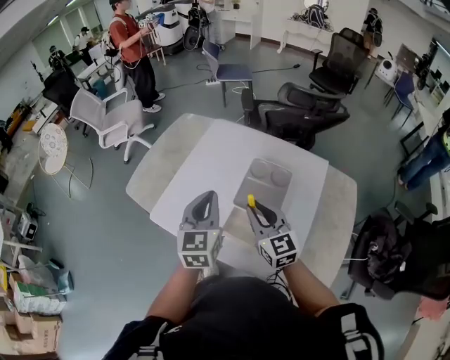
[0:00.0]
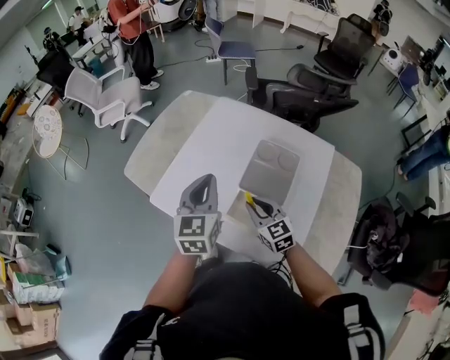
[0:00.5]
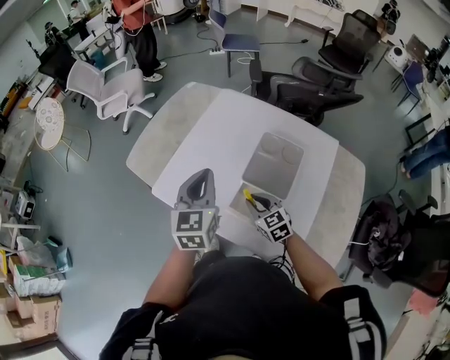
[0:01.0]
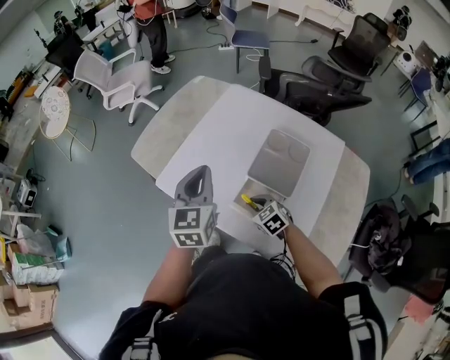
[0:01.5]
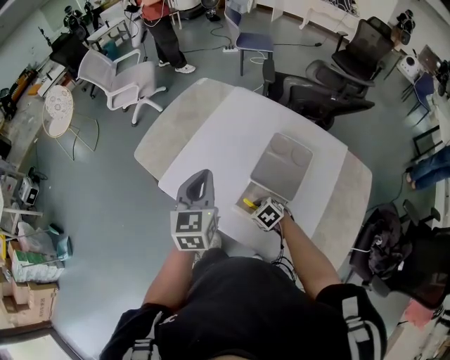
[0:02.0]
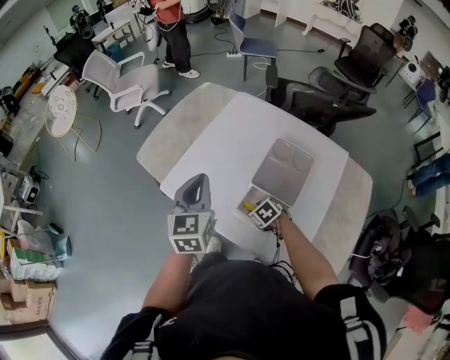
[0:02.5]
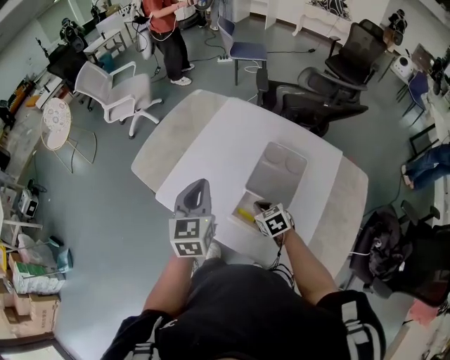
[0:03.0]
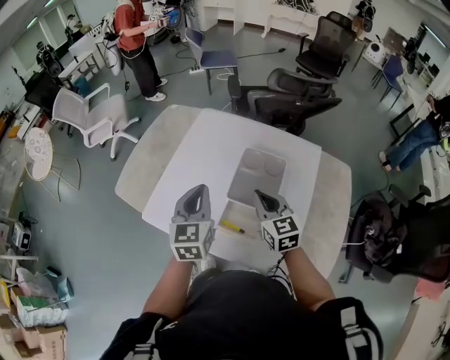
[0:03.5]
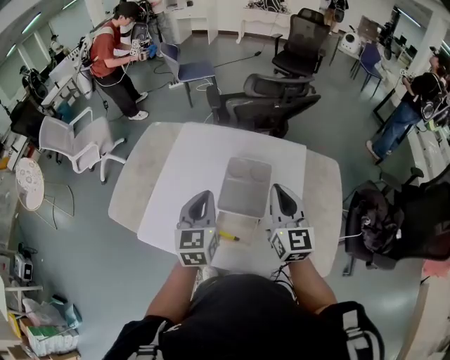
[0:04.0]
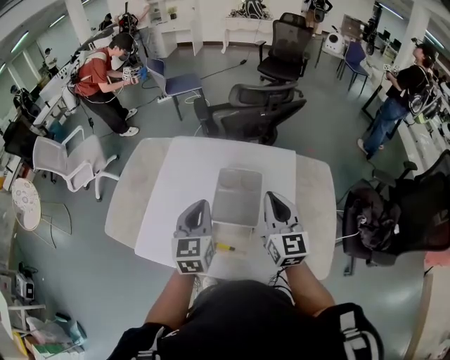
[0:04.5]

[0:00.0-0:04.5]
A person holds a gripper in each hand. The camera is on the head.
0:00.0 to 0:02.0: The right gripper moves downward, some 25 cm, and points its fingers some 50 degrees further downward, while the left gripper is displaced to the left by roughly 10 cm.
0:02.0 to 0:04.5: The left gripper ends up approximately 15 cm from where it was, and changes its angle by roughly 20 degrees, while the right gripper shifts some 30 cm upward, and tilts its fingers approximately 60 degrees upward.

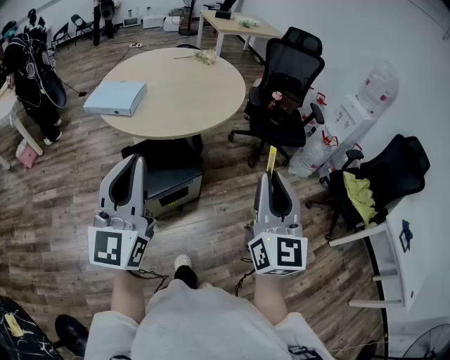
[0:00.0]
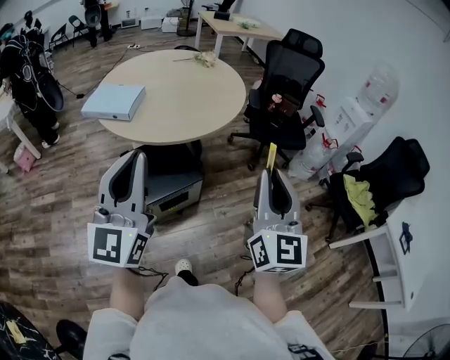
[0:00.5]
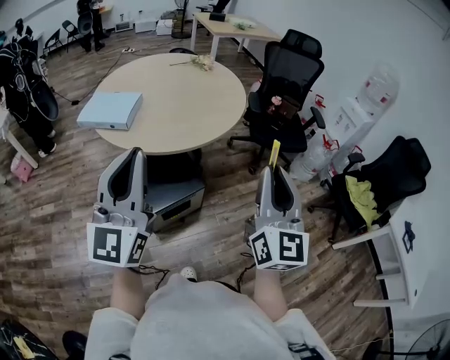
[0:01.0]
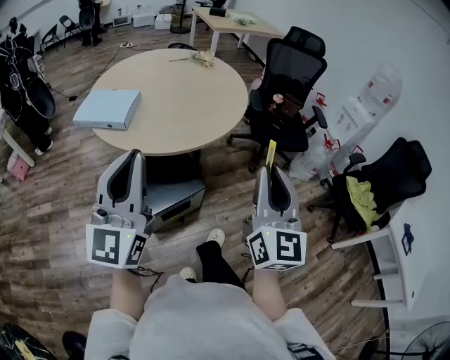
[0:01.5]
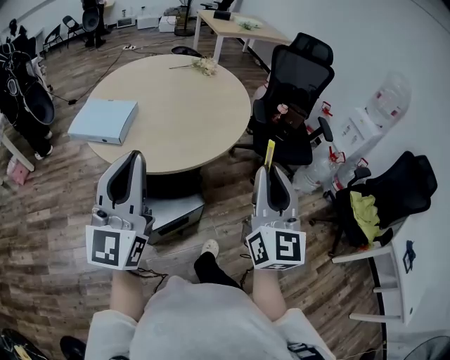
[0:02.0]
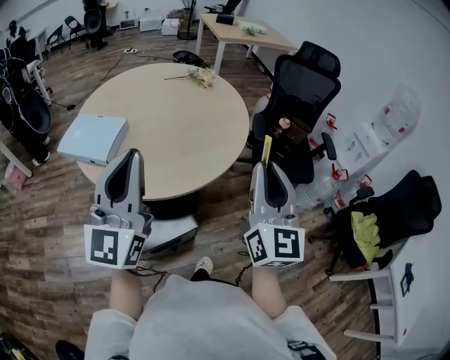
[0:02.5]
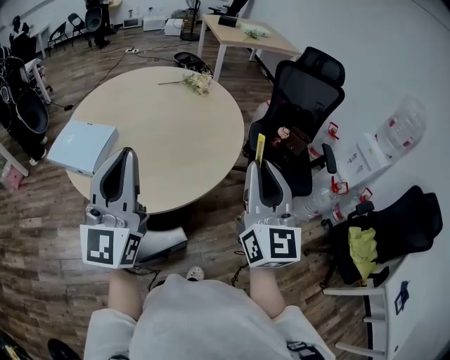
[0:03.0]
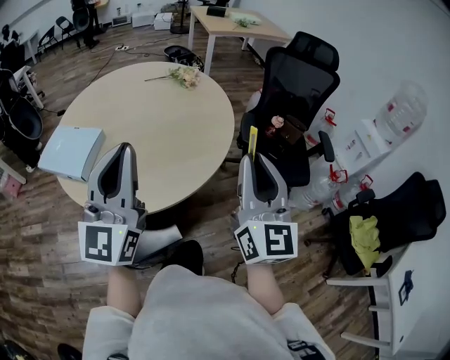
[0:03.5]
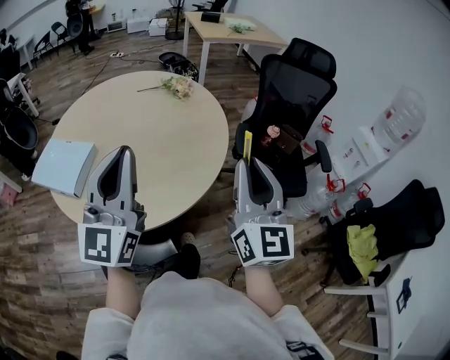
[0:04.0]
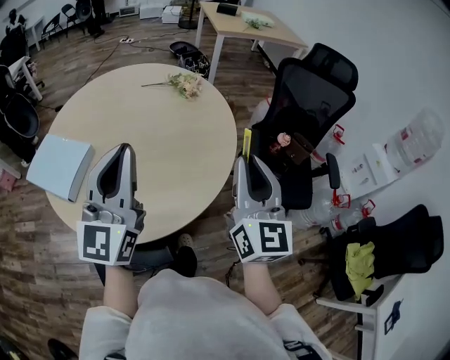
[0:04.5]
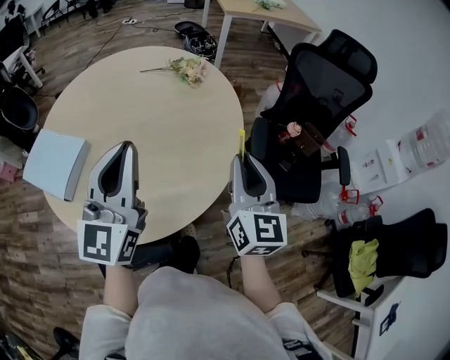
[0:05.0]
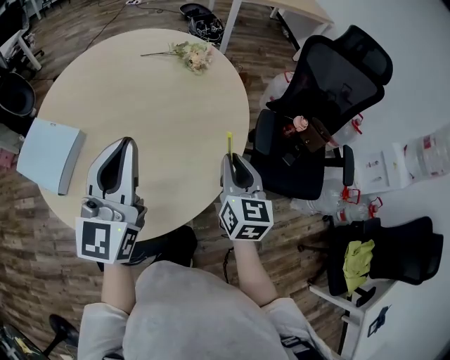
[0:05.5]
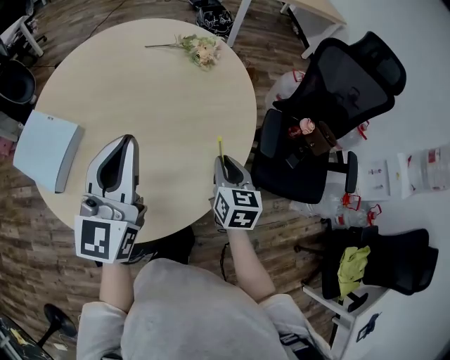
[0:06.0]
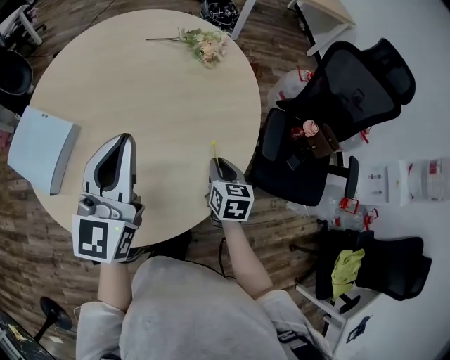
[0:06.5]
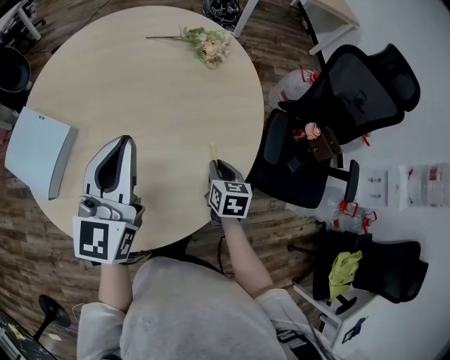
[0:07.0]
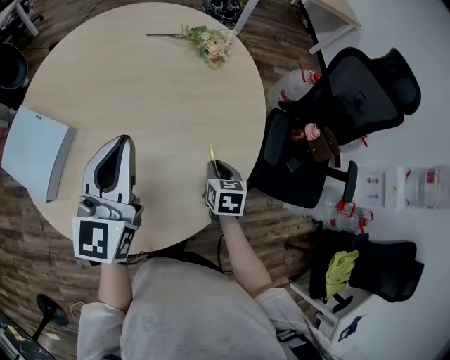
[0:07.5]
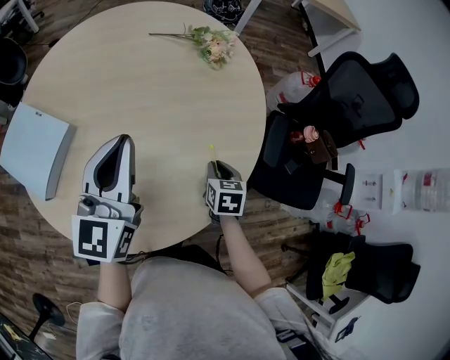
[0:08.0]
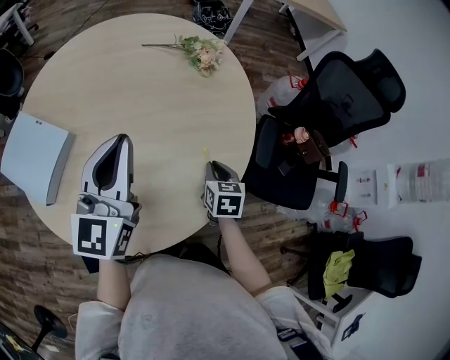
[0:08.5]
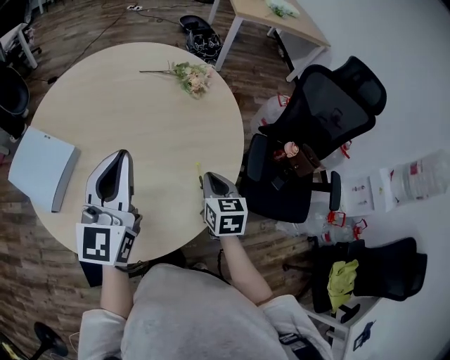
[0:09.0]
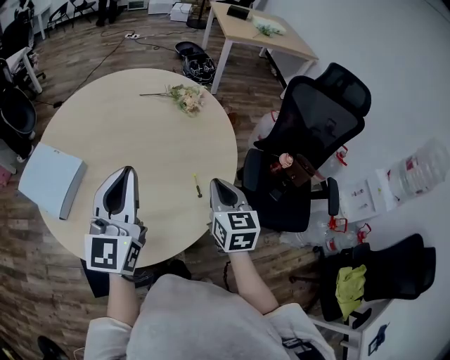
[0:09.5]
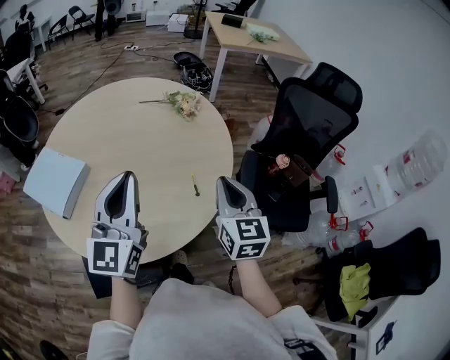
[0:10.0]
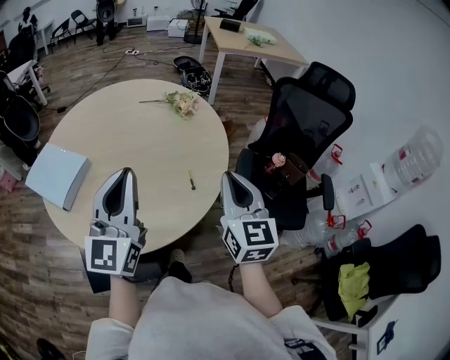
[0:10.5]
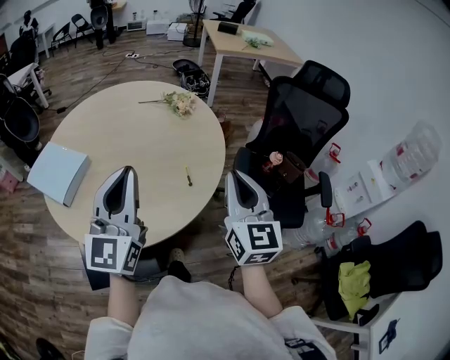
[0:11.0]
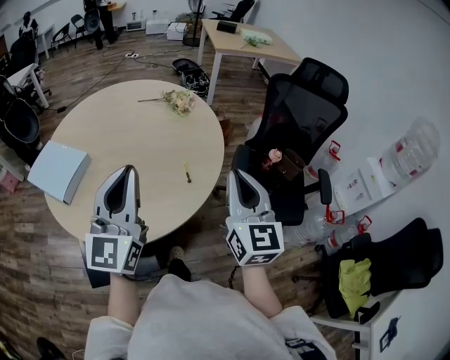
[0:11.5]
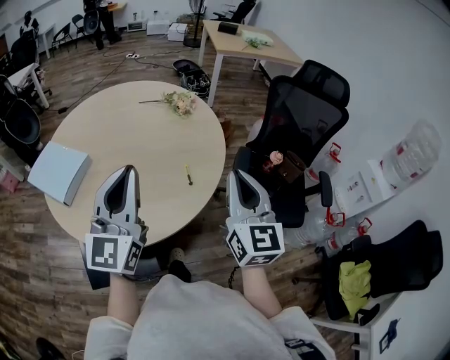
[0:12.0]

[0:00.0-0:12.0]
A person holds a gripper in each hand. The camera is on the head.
0:00.0 to 0:02.0: The grippers both shift forward by some 20 cm.
0:02.0 to 0:04.0: The right gripper goes about 30 cm forward. Meanwhile the left gripper is displaced forward and to the right by approximately 30 cm.
0:04.0 to 0:06.0: The right gripper shifts roughly 40 cm downward and forward, and angles its fingers downward, by about 40 degrees. The left gripper is displaced forward and downward by approximately 25 cm.
0:06.0 to 0:08.0: The left gripper is displaced forward and downward by approximately 10 cm. The right gripper shifts approximately 10 cm downward, and swivels about 20 degrees.
0:08.0 to 0:10.0: The right gripper moves upward, approximately 30 cm, and tips its fingers upward by approximately 40 degrees; the left gripper heads backward and upward, covering about 20 cm.
0:10.0 to 0:12.0: The left gripper goes about 10 cm backward; the right gripper is displaced backward, upward and to the right by about 15 cm.

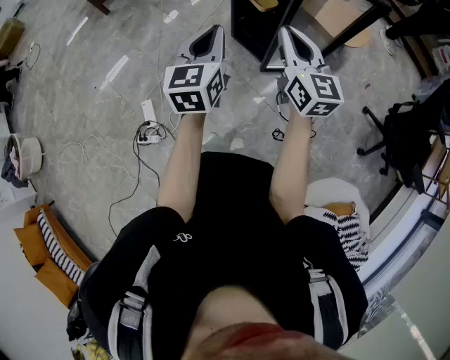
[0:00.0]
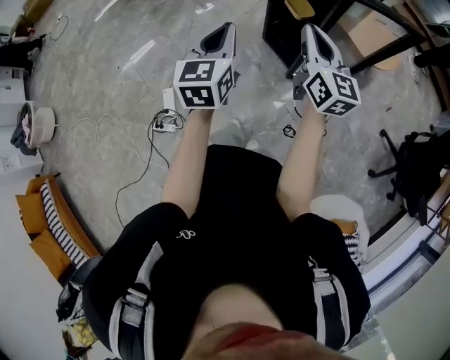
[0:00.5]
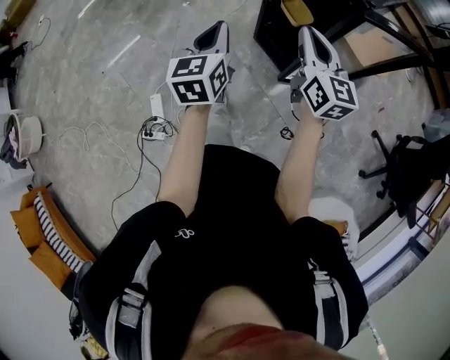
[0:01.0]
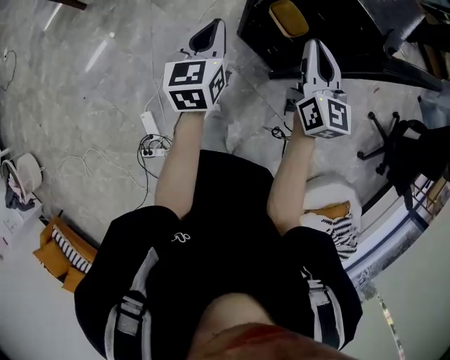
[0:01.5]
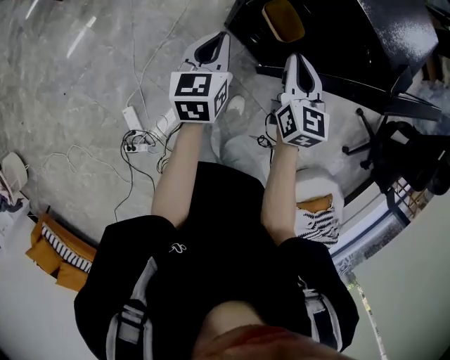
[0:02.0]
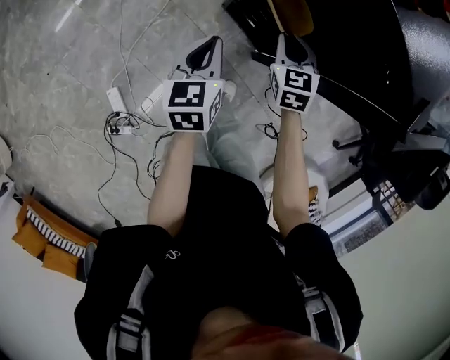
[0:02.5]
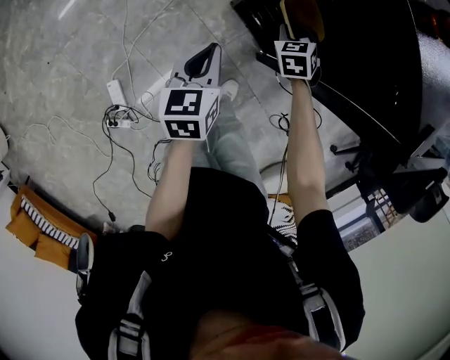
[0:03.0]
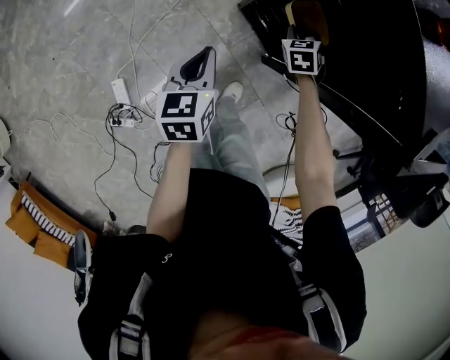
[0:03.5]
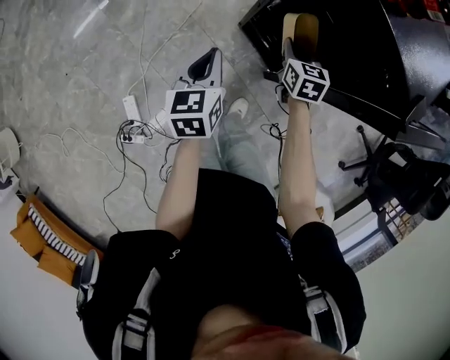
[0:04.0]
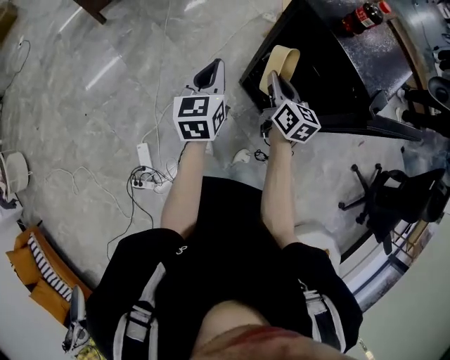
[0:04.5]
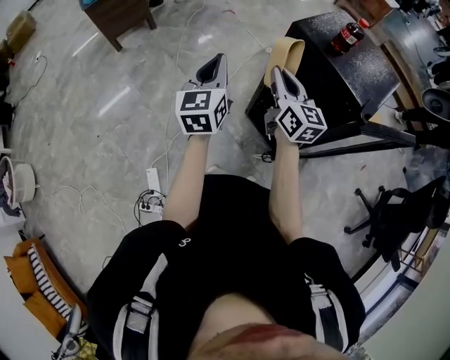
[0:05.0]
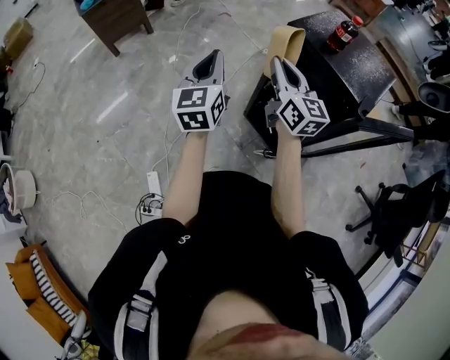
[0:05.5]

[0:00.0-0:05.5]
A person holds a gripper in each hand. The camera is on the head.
0:00.0 to 0:02.0: Both grippers move forward and downward, about 40 cm. The right gripper changes its angle by approximately 30 degrees; the left gripper rotates about 20 degrees.
0:02.0 to 0:03.5: The left gripper shifts approximately 10 cm downward, while the right gripper travels downward and forward by approximately 30 cm, and tilts its fingers roughly 40 degrees downward.
0:03.5 to 0:05.5: The two grippers go approximately 40 cm upward. The left gripper points its fingers some 40 degrees further upward, while the right gripper tilts its fingers about 60 degrees upward.

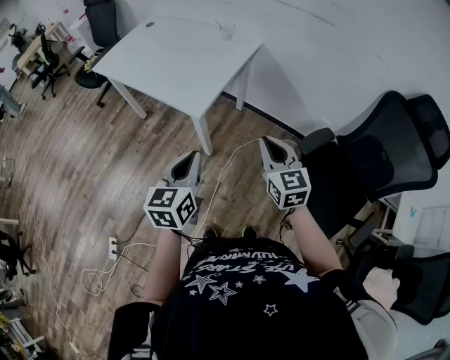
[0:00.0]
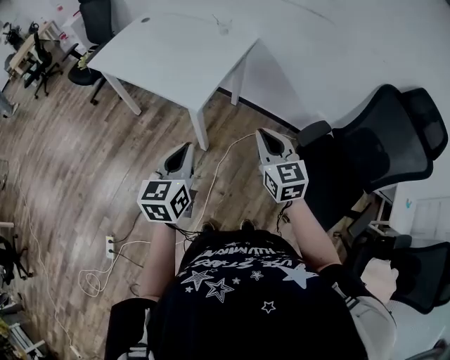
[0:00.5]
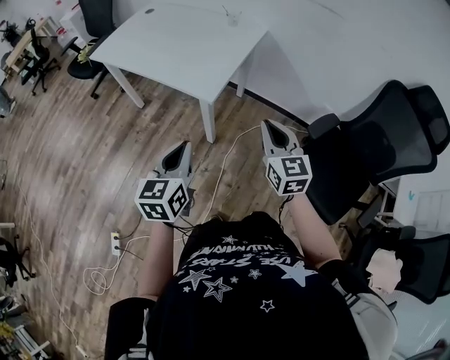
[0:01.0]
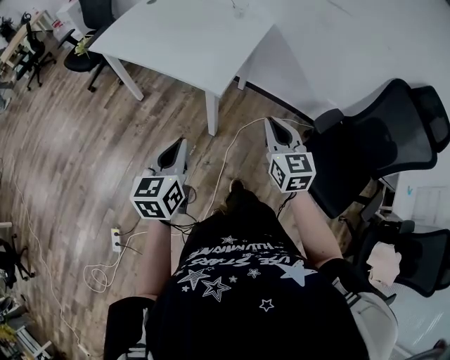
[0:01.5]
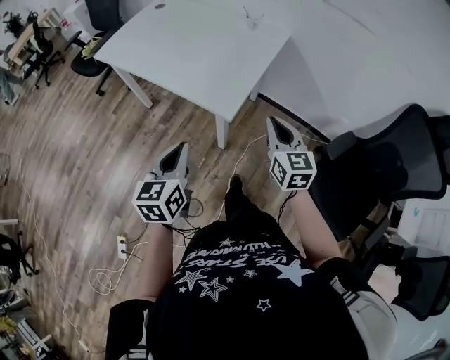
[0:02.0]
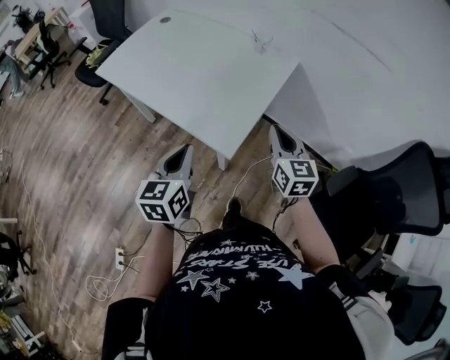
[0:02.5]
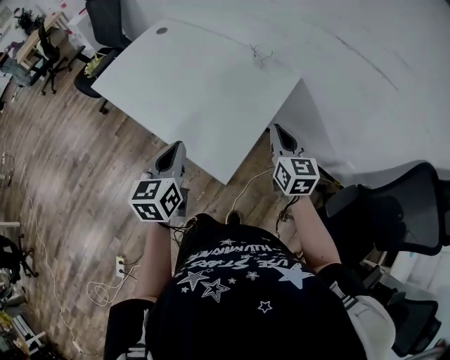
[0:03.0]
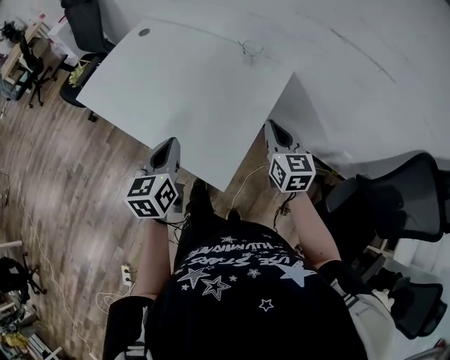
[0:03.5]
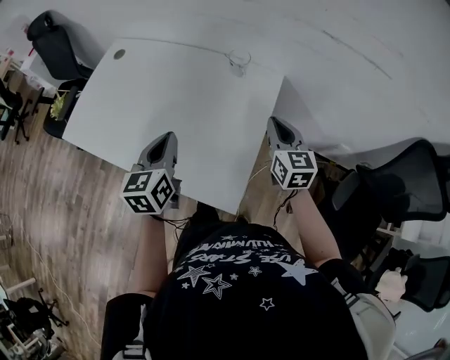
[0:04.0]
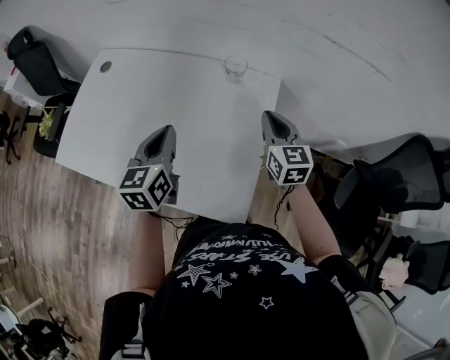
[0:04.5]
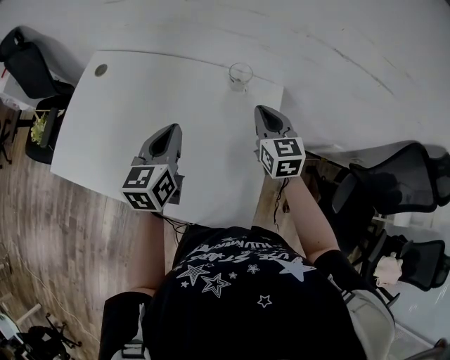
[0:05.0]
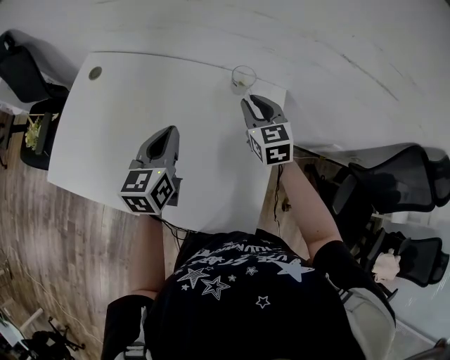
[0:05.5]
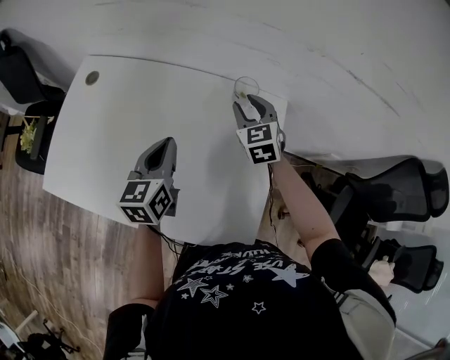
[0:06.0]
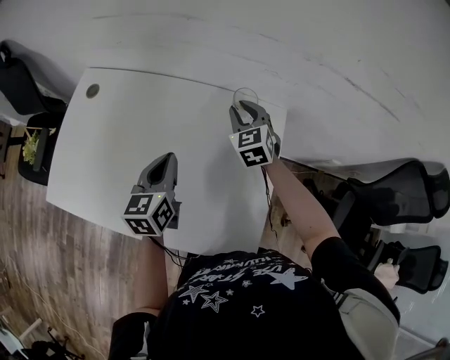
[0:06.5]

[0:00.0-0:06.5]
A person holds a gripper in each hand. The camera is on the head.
0:00.0 to 0:02.0: The right gripper moves forward and to the left, roughly 15 cm, while the left gripper is displaced to the left and forward by approximately 20 cm.
0:02.0 to 0:04.5: The two grippers go approximately 40 cm forward.
0:04.5 to 0:06.5: The right gripper shifts about 20 cm forward and to the left, swivels approximately 30 degrees, and opens up. The left gripper goes approximately 10 cm forward and downward.
